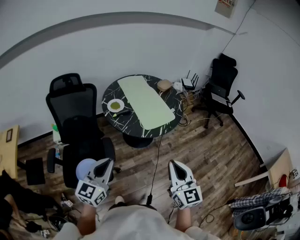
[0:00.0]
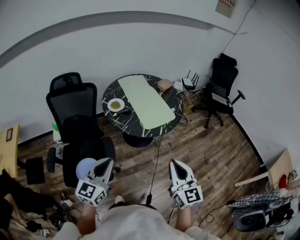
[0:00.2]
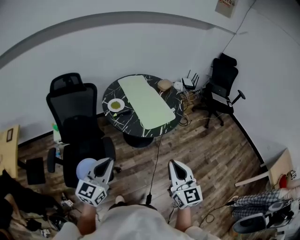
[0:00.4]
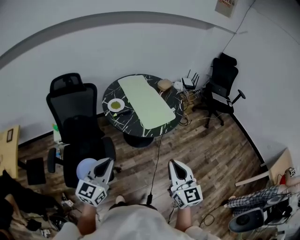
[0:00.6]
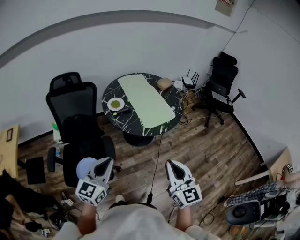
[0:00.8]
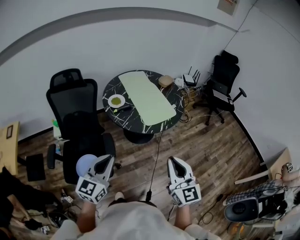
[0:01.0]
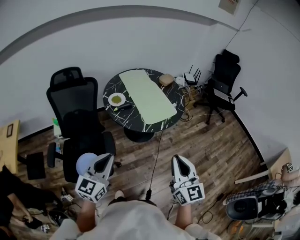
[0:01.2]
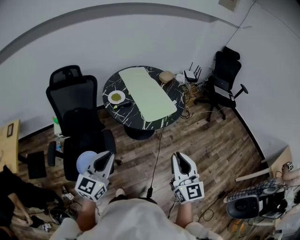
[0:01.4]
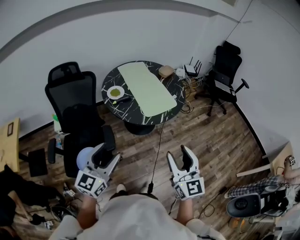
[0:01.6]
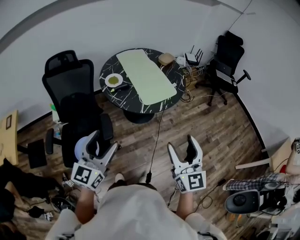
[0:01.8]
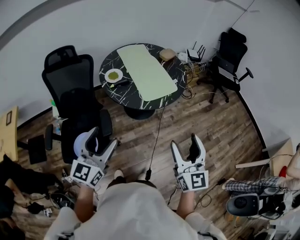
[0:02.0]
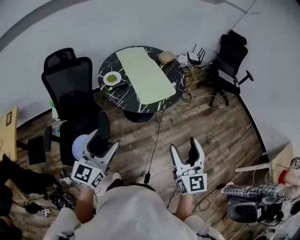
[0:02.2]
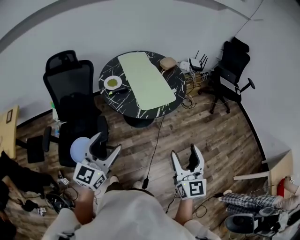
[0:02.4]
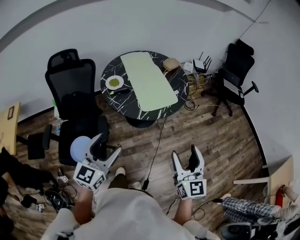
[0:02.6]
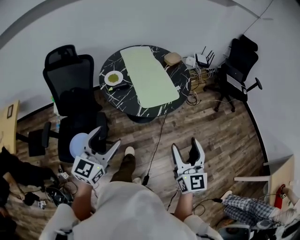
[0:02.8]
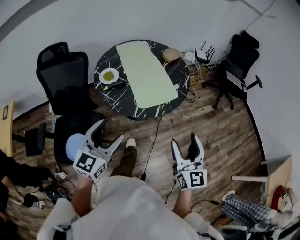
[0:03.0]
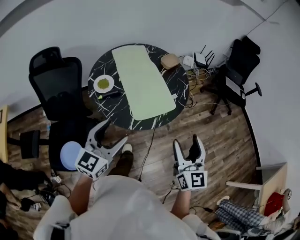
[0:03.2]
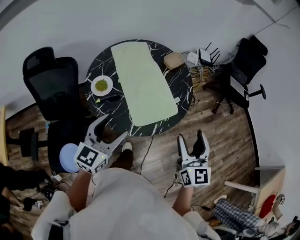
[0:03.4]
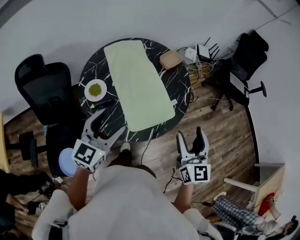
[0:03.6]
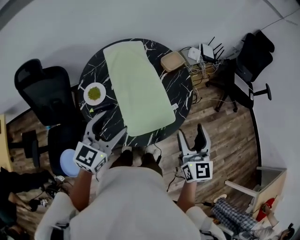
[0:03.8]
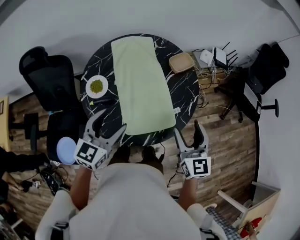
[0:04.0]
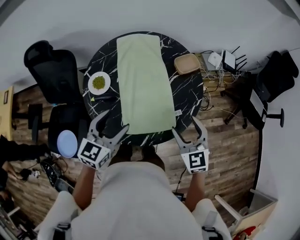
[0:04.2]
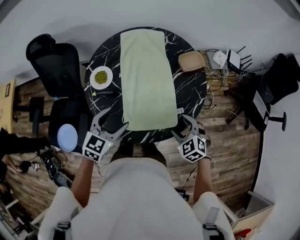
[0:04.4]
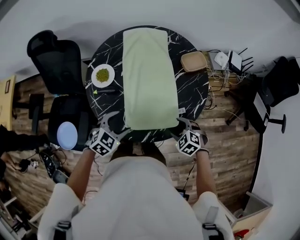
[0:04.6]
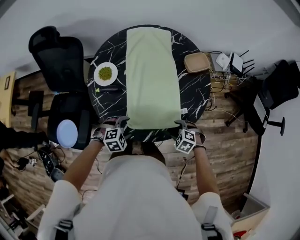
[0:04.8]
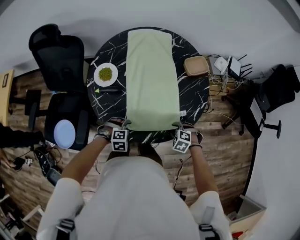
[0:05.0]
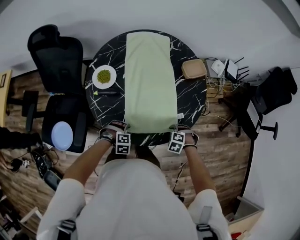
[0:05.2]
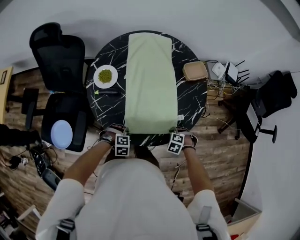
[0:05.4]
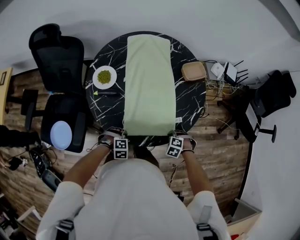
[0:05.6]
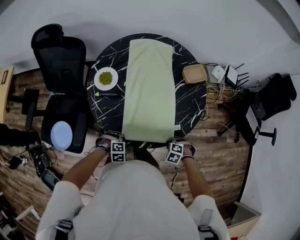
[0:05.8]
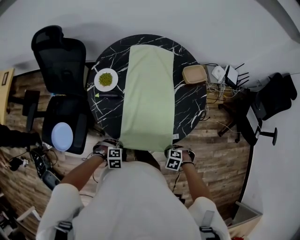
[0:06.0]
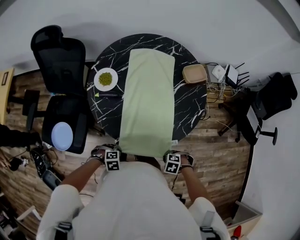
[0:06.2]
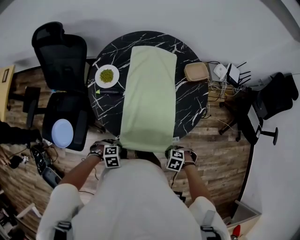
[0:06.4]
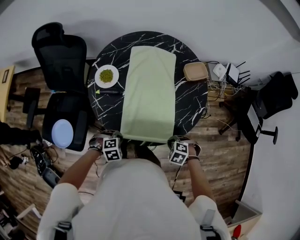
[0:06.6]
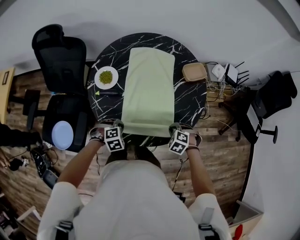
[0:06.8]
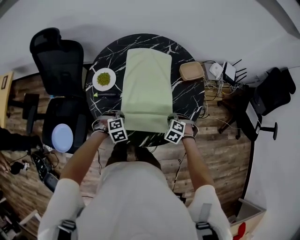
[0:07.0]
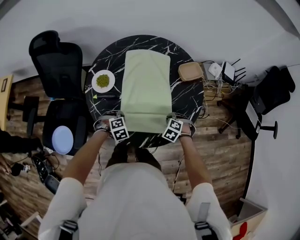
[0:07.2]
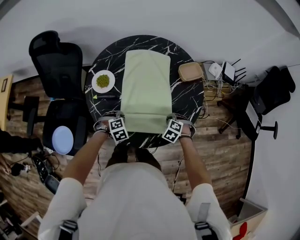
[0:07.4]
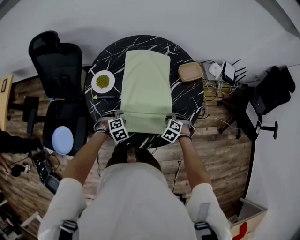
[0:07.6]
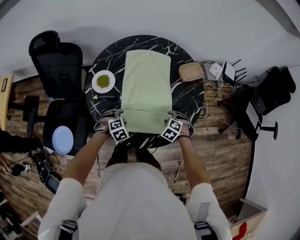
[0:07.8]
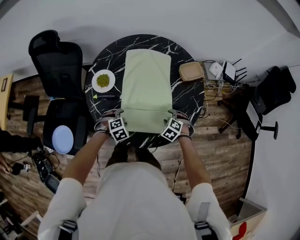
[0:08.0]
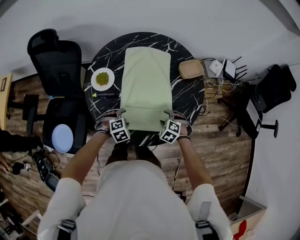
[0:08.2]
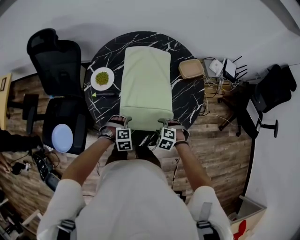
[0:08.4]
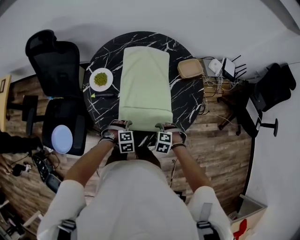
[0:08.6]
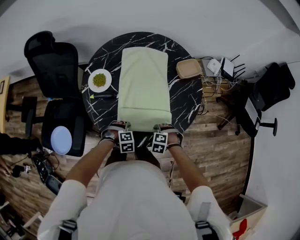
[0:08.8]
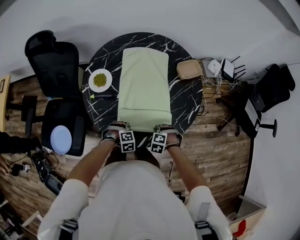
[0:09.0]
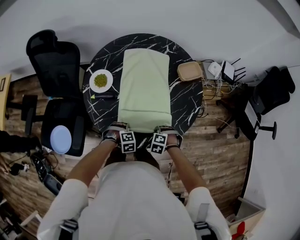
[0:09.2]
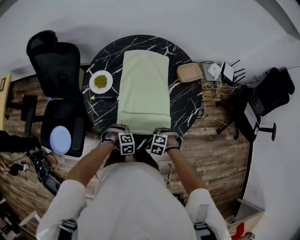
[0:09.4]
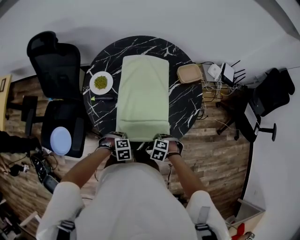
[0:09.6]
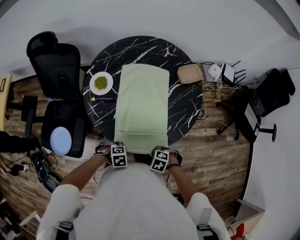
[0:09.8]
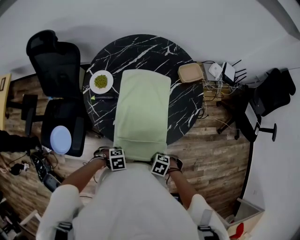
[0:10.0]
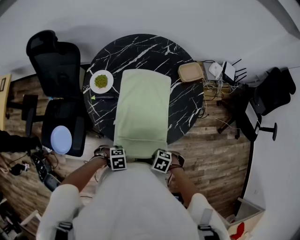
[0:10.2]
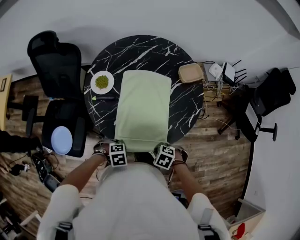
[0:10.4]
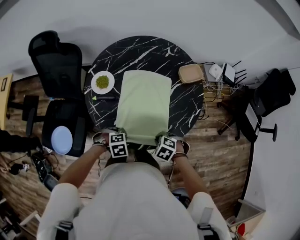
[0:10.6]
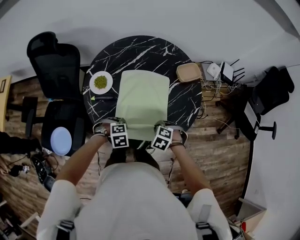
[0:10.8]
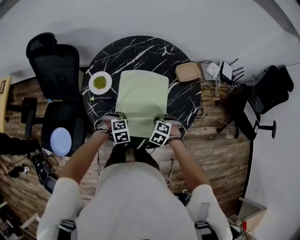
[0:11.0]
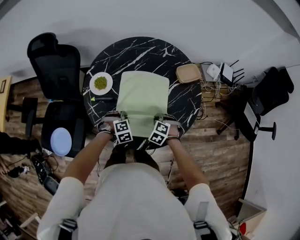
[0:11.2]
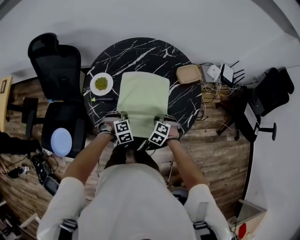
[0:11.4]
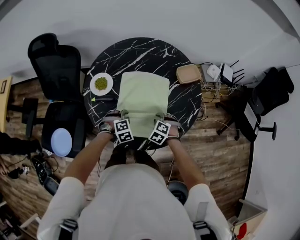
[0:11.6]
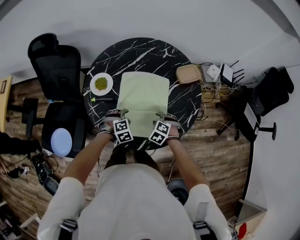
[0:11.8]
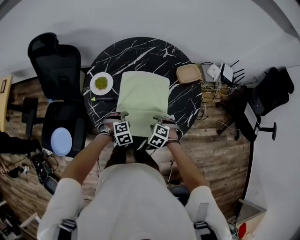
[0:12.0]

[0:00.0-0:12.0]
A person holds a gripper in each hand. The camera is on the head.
0:00.0 to 0:01.6: The left gripper opens; the right gripper opens its fingers.
0:01.6 to 0:03.0: The two grippers go roughly 15 cm forward and to the right.
0:03.0 to 0:04.4: The left gripper changes place by some 35 cm, and swivels some 30 degrees, while the right gripper moves roughly 40 cm, and tilts its fingers some 50 degrees downward.
0:04.4 to 0:06.0: The left gripper moves downward, roughly 25 cm, tilts its fingers approximately 50 degrees downward, and closes its fingers. The right gripper moves downward, roughly 15 cm, turns by roughly 40 degrees, and closes.
0:06.0 to 0:07.6: The right gripper shifts by roughly 20 cm, and turns by about 30 degrees, while the left gripper ends up some 20 cm from where it was, changes its angle by about 20 degrees, and opens its fingers.
0:07.6 to 0:09.0: The left gripper changes place by roughly 10 cm, and closes, while the right gripper moves some 10 cm, and opens, then closes again.
0:09.0 to 0:10.4: The left gripper shifts by roughly 10 cm, and turns by some 20 degrees. Meanwhile the right gripper moves approximately 10 cm, and rotates about 30 degrees.
0:10.4 to 0:12.0: The right gripper ends up some 15 cm from where it was, turns by some 30 degrees, and opens up, while the left gripper shifts by about 15 cm, changes its angle by roughly 30 degrees, and opens up.

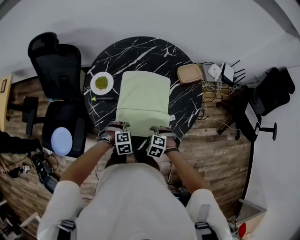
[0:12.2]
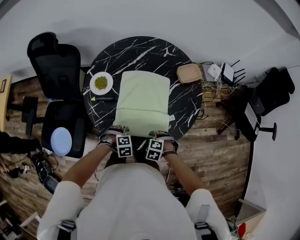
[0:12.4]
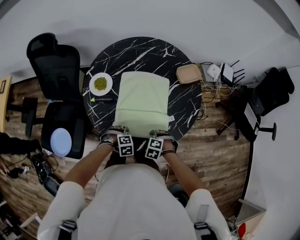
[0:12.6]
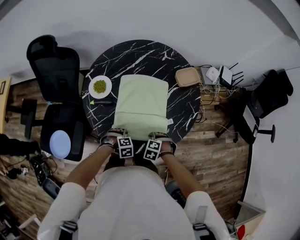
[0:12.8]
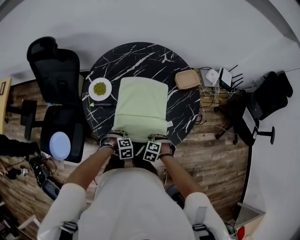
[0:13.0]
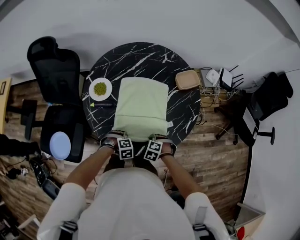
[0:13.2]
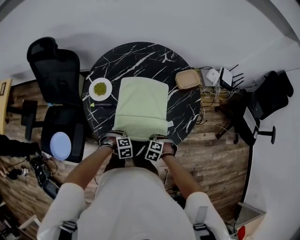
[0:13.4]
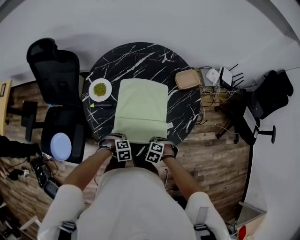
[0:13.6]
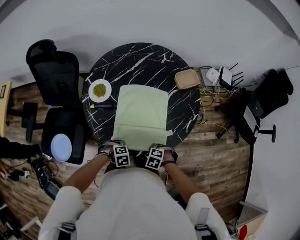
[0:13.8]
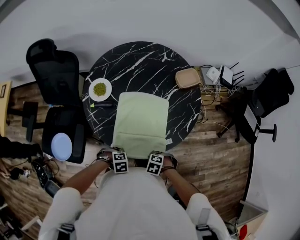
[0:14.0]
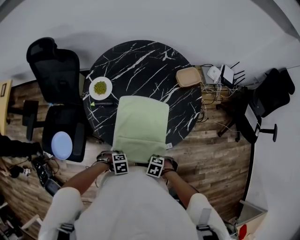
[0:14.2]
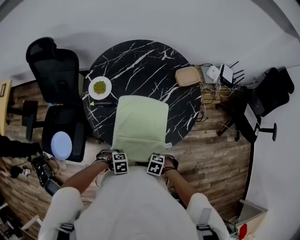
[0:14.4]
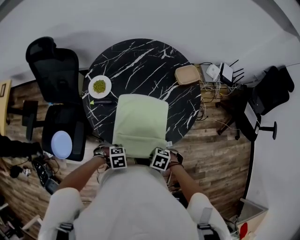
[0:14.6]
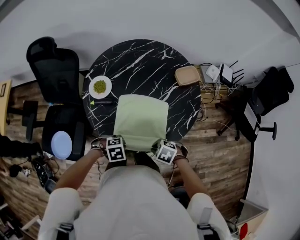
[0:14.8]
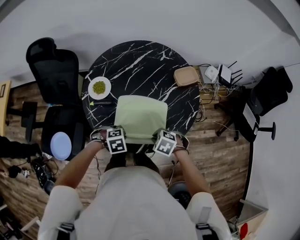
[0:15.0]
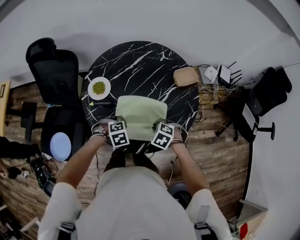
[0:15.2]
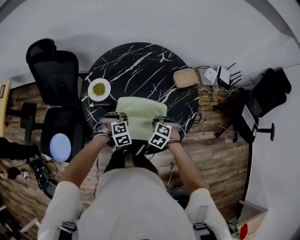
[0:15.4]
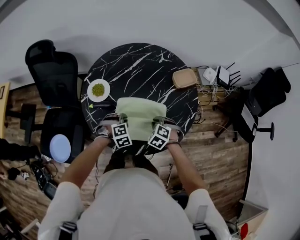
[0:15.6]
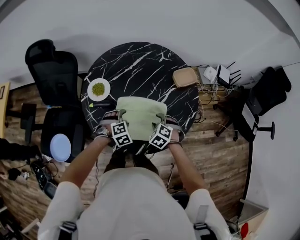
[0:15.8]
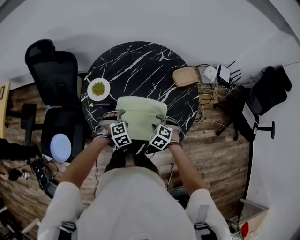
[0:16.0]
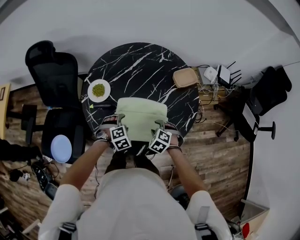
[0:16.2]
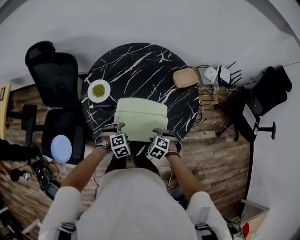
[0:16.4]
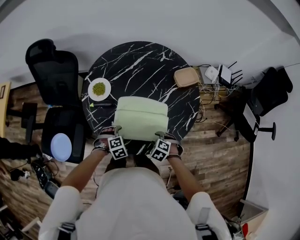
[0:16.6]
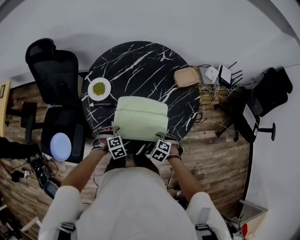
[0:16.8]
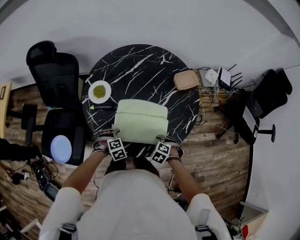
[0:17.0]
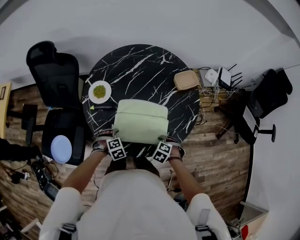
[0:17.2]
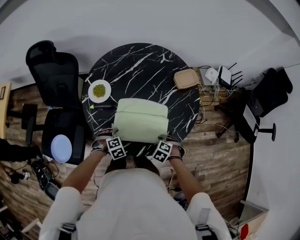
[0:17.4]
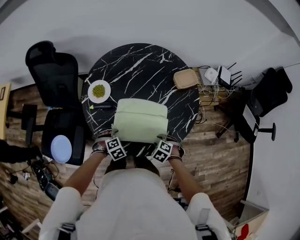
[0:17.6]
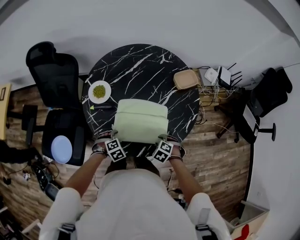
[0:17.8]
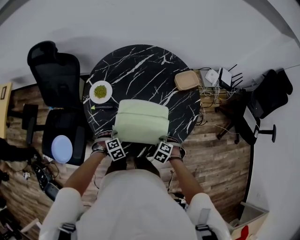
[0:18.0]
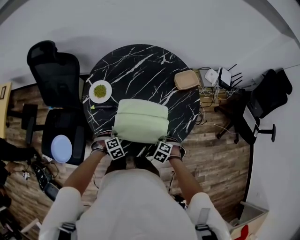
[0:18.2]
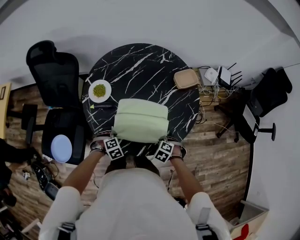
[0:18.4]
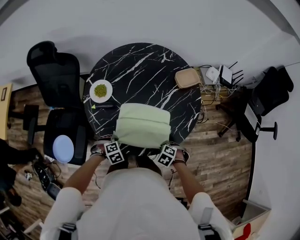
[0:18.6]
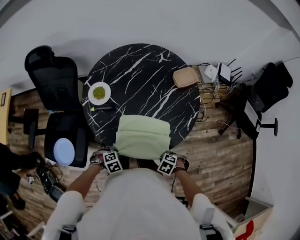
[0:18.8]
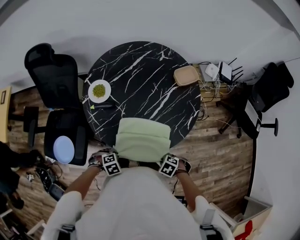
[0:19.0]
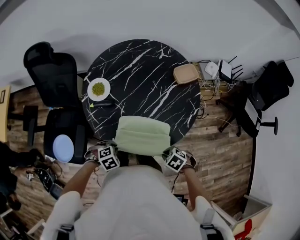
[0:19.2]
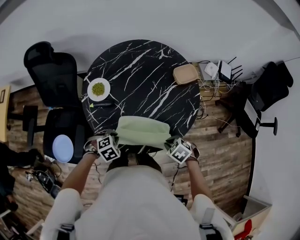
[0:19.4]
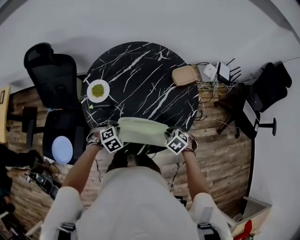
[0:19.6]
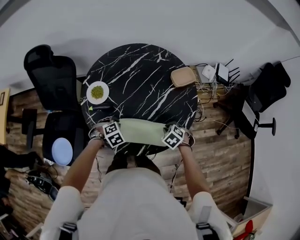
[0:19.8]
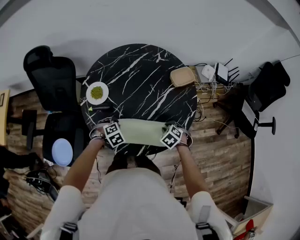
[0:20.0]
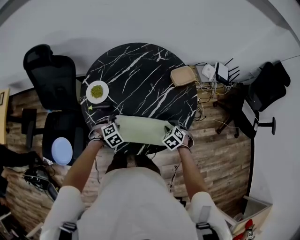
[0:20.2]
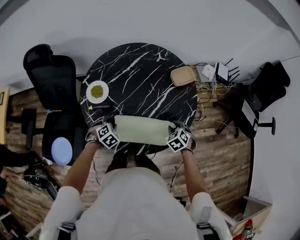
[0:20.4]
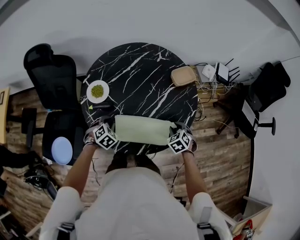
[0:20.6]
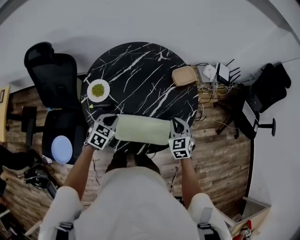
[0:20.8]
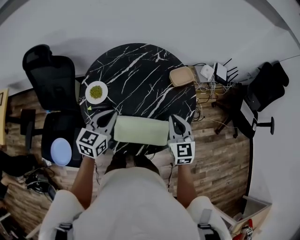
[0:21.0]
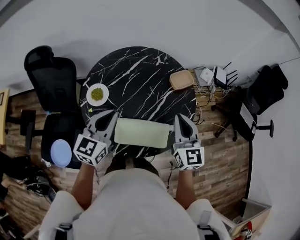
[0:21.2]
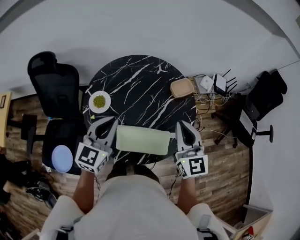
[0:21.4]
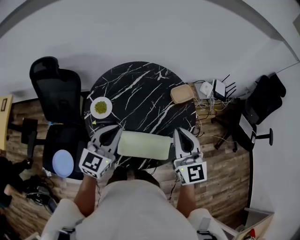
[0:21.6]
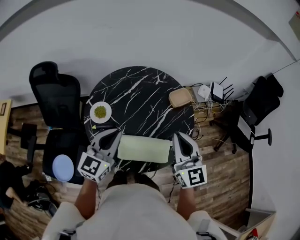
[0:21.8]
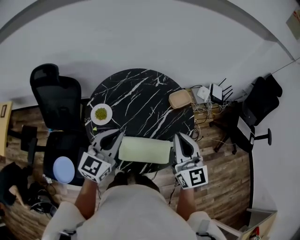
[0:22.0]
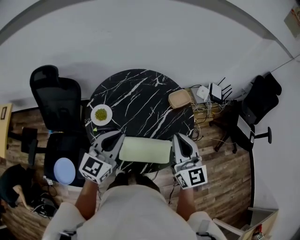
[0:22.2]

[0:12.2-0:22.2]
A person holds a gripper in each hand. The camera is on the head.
0:12.2 to 0:13.6: The right gripper closes, while the left gripper closes up.
0:13.6 to 0:15.0: Both grippers move upward, about 10 cm.
0:15.0 to 0:16.4: The right gripper shifts some 5 cm downward, and opens its fingers, while the left gripper opens up.
0:16.4 to 0:18.0: The left gripper changes place by about 10 cm. The right gripper moves some 5 cm.
0:18.0 to 0:19.4: The two grippers go roughly 10 cm upward. The left gripper closes up. The right gripper swivels some 20 degrees, and closes its fingers.
0:19.4 to 0:20.8: The right gripper ends up some 15 cm from where it was, and tilts its fingers roughly 40 degrees upward. The left gripper ends up about 10 cm from where it was, rotates about 40 degrees, and opens and closes again.
0:20.8 to 0:22.2: The two grippers go roughly 25 cm upward. The right gripper tilts its fingers roughly 40 degrees upward, while the left gripper tilts its fingers roughly 40 degrees upward.

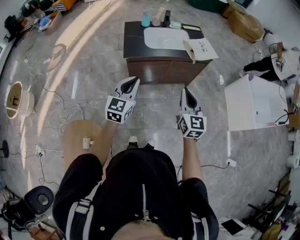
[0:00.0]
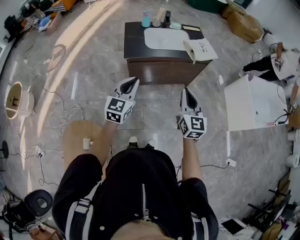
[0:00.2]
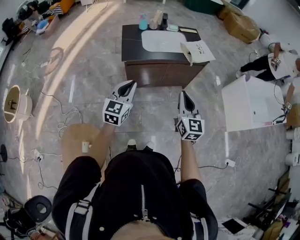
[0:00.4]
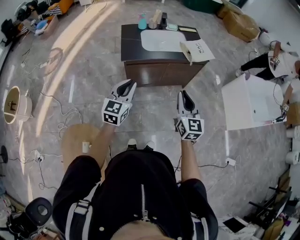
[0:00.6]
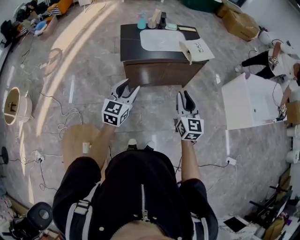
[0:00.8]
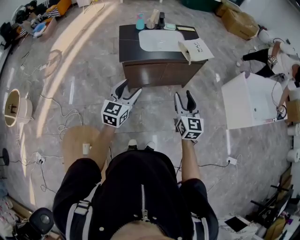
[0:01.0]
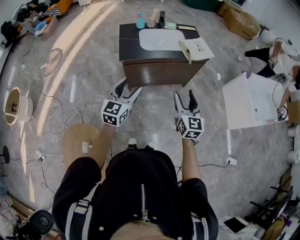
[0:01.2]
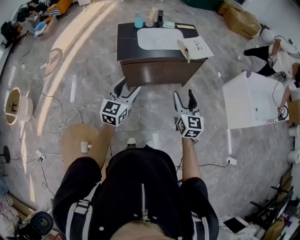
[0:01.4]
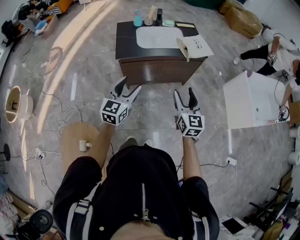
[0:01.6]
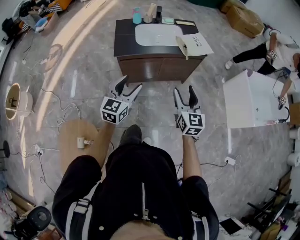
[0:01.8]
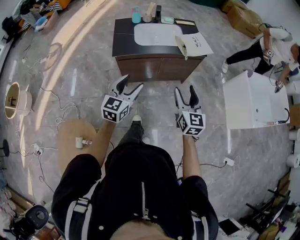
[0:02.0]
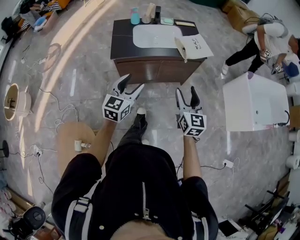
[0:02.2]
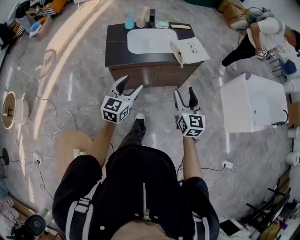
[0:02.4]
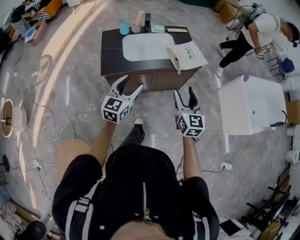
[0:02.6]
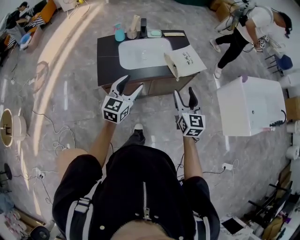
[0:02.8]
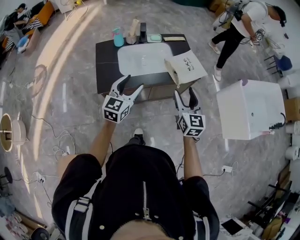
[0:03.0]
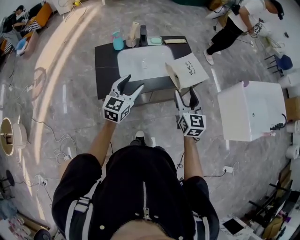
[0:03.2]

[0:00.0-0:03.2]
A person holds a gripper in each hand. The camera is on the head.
0:00.0 to 0:01.6: The right gripper ends up approximately 5 cm from where it was, and opens up. Meanwhile the left gripper opens up.
0:01.6 to 0:03.2: Both grippers move forward, some 30 cm.
